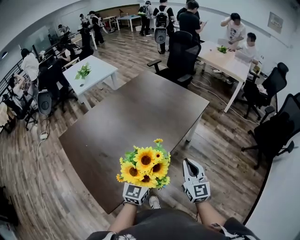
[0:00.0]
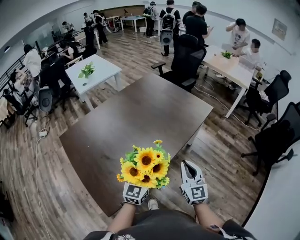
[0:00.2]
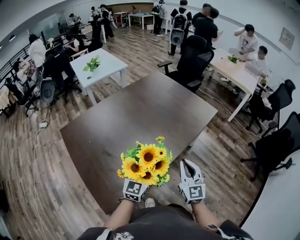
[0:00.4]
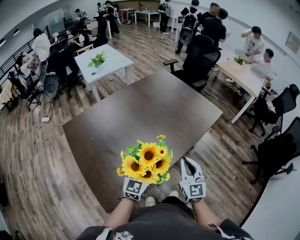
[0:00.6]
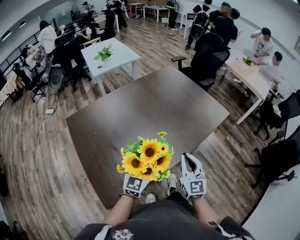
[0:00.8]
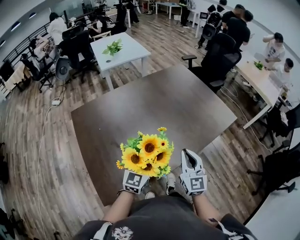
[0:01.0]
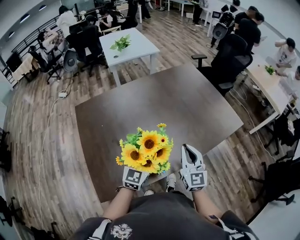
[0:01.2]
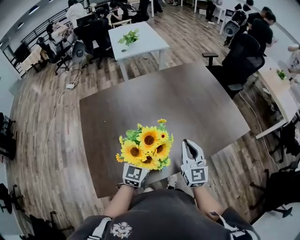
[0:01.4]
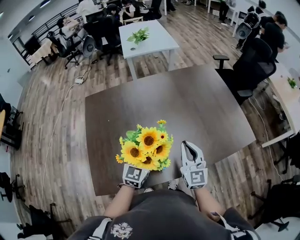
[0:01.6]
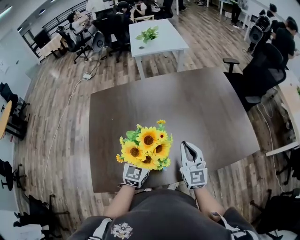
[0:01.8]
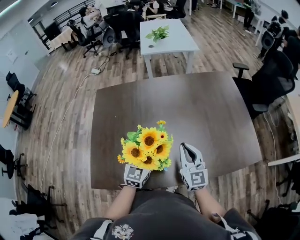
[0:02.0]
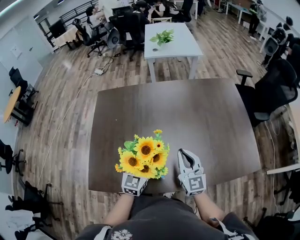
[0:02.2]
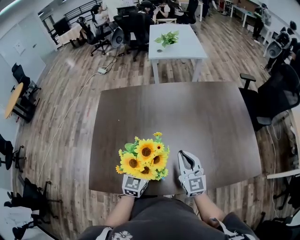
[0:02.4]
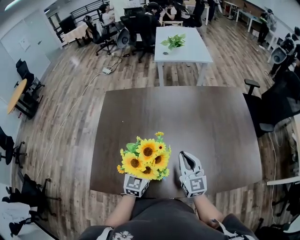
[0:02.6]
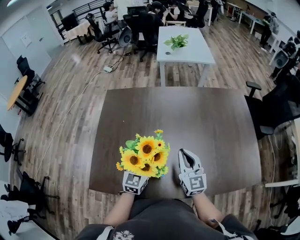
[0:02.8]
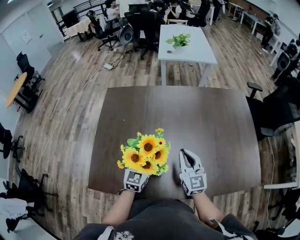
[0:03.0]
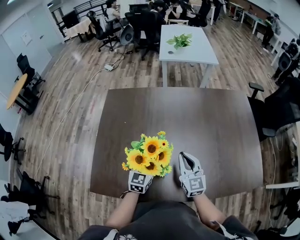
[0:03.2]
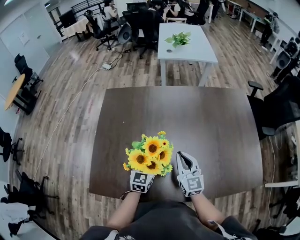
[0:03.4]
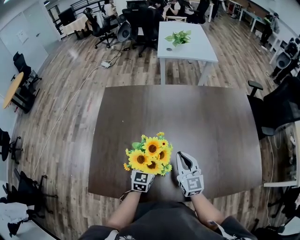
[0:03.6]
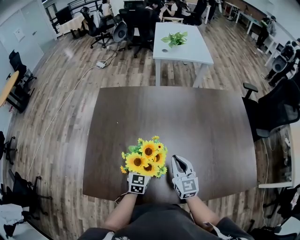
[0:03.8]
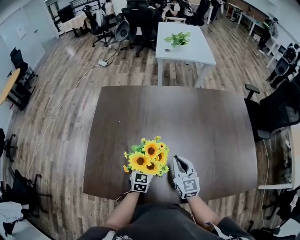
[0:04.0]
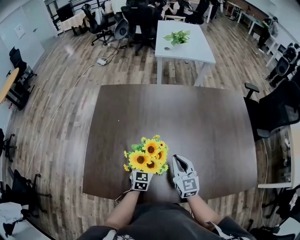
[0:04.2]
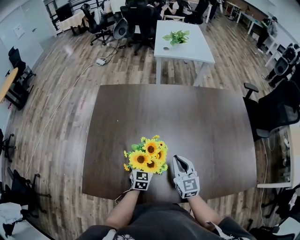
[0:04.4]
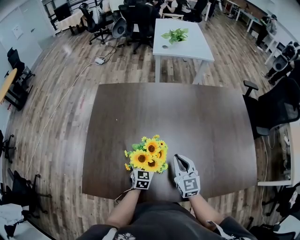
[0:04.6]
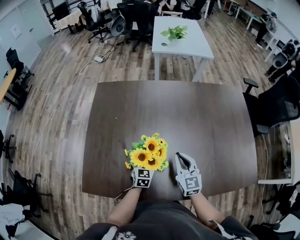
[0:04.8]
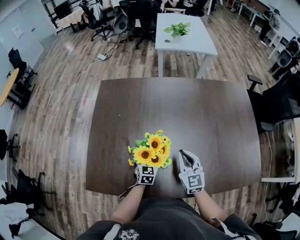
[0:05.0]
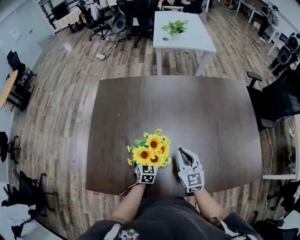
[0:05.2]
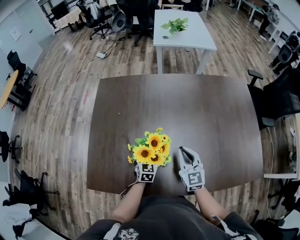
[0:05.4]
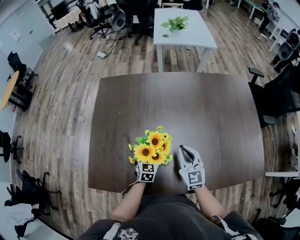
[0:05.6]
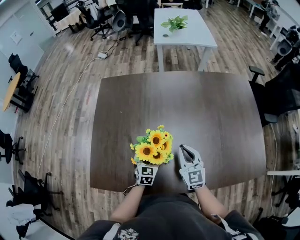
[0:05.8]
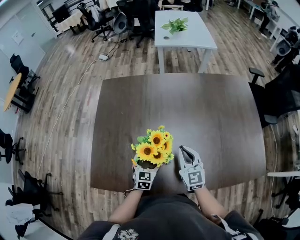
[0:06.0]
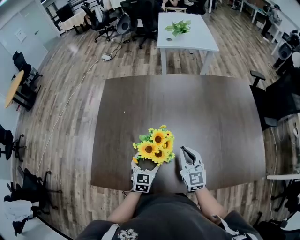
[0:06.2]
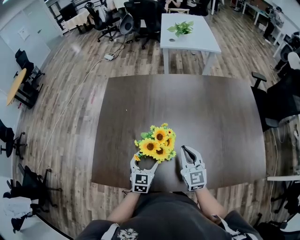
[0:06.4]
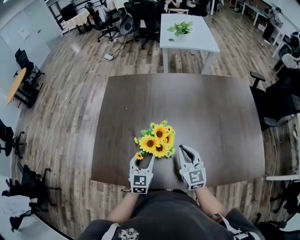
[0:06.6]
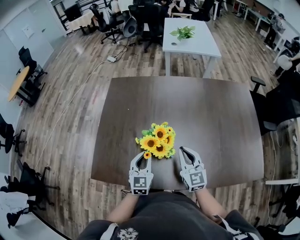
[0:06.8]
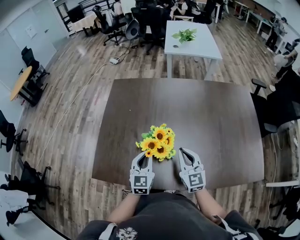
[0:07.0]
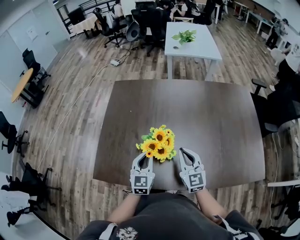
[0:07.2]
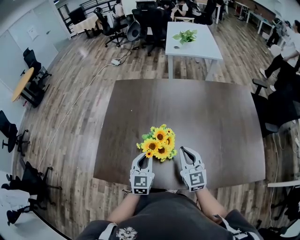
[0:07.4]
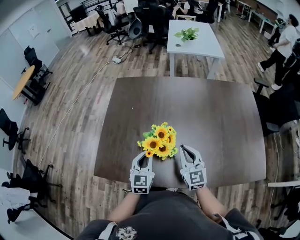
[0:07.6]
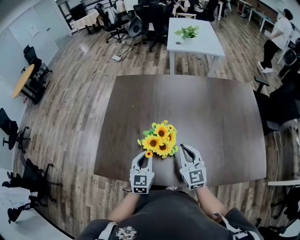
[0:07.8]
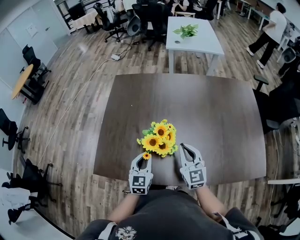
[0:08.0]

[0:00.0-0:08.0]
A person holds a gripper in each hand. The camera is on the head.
0:00.0 to 0:01.6: The right gripper changes place by approximately 30 cm, and swivels roughly 30 degrees. Meanwhile the left gripper moves roughly 20 cm, and turns by some 30 degrees.
0:01.6 to 0:03.2: The left gripper goes approximately 15 cm downward, forward and to the left, and changes its angle by approximately 20 degrees, while the right gripper is displaced forward, to the left and downward by some 15 cm, and rotates about 20 degrees.
0:03.2 to 0:04.8: The left gripper shifts some 15 cm downward.
0:04.8 to 0:06.4: The left gripper is displaced upward and backward by approximately 10 cm.
0:06.4 to 0:08.0: The left gripper ends up some 5 cm from where it was, and closes up.

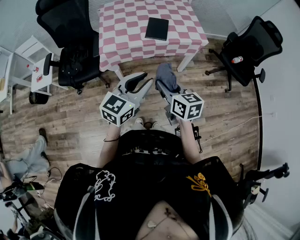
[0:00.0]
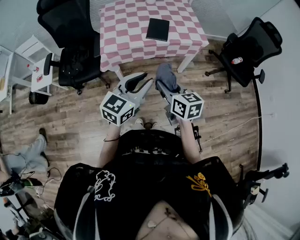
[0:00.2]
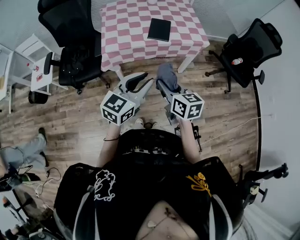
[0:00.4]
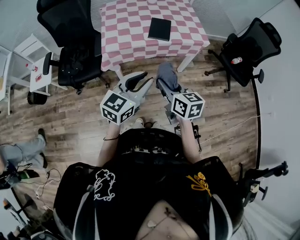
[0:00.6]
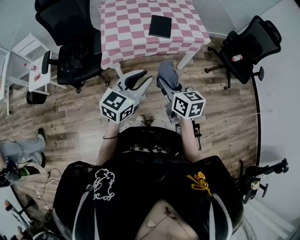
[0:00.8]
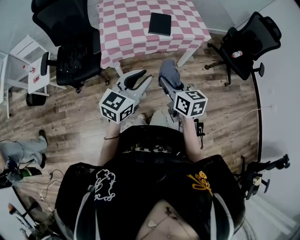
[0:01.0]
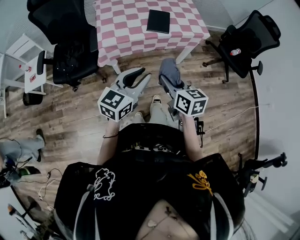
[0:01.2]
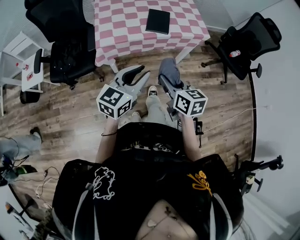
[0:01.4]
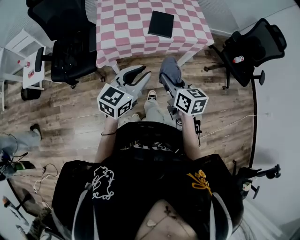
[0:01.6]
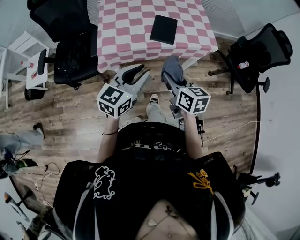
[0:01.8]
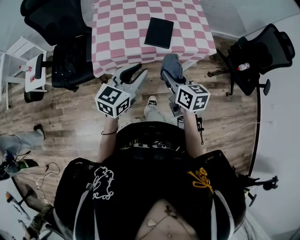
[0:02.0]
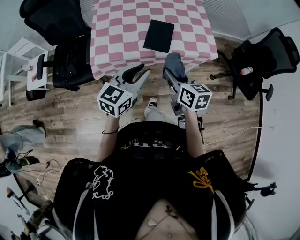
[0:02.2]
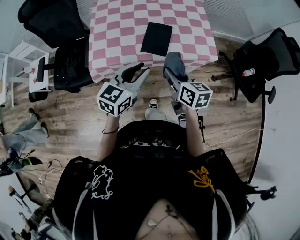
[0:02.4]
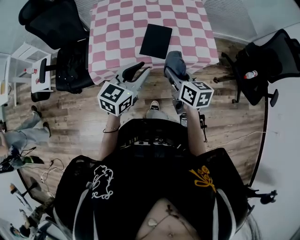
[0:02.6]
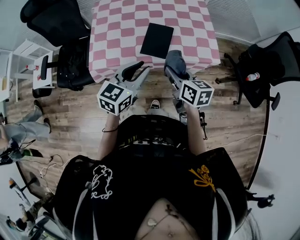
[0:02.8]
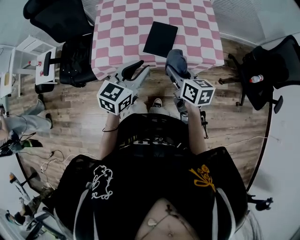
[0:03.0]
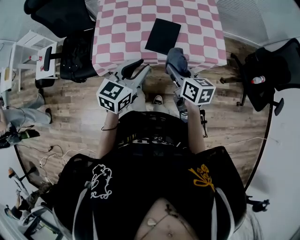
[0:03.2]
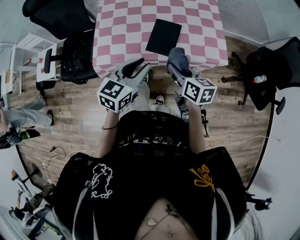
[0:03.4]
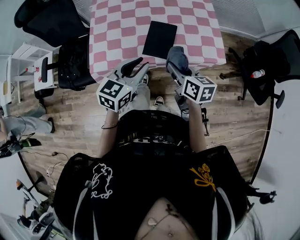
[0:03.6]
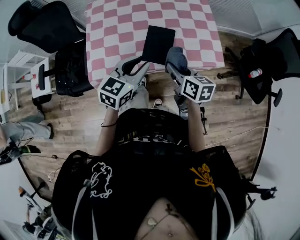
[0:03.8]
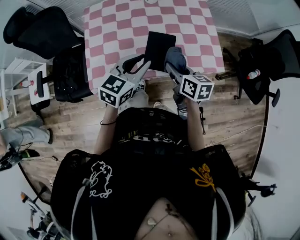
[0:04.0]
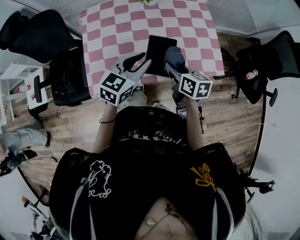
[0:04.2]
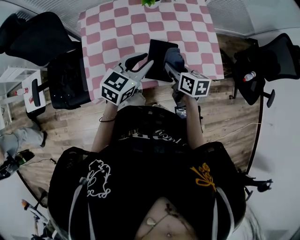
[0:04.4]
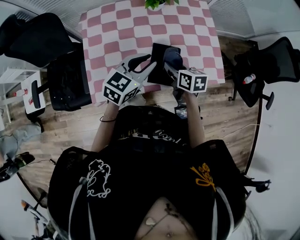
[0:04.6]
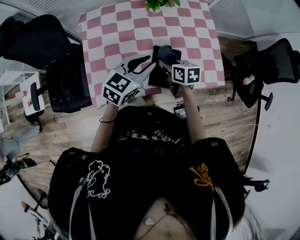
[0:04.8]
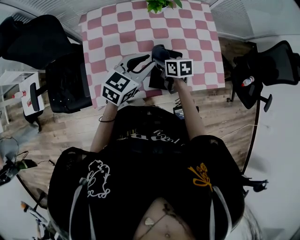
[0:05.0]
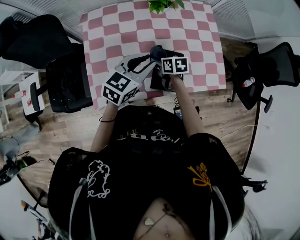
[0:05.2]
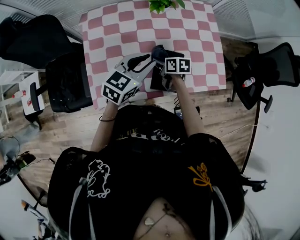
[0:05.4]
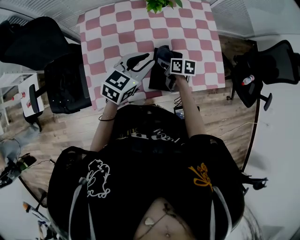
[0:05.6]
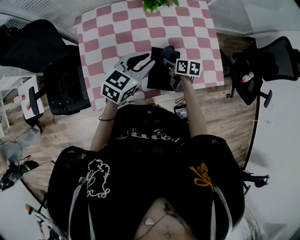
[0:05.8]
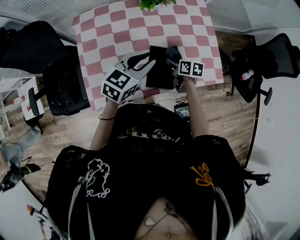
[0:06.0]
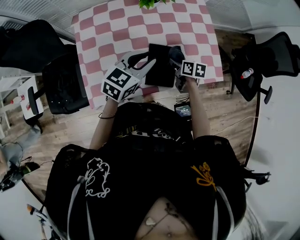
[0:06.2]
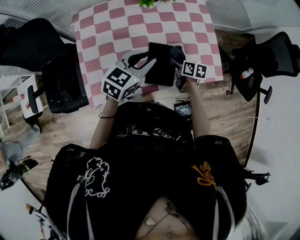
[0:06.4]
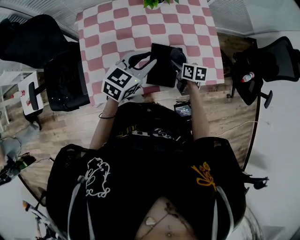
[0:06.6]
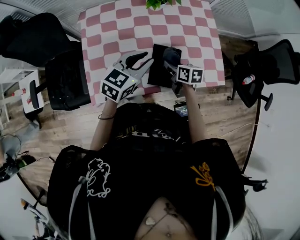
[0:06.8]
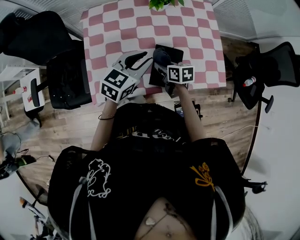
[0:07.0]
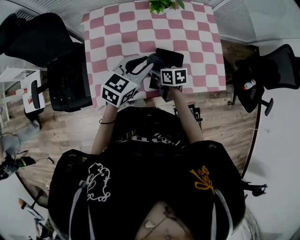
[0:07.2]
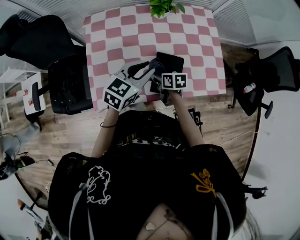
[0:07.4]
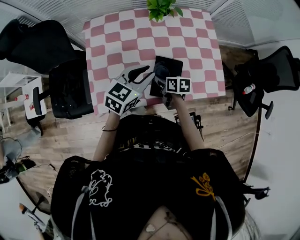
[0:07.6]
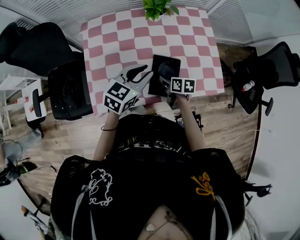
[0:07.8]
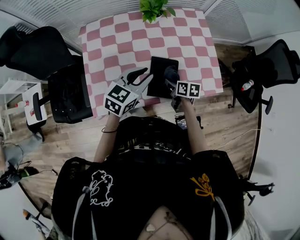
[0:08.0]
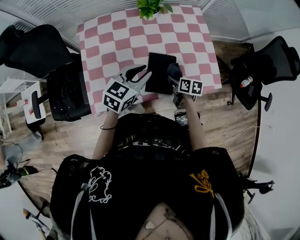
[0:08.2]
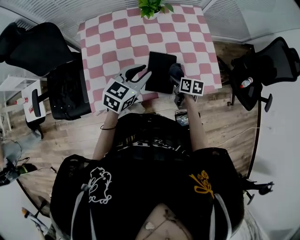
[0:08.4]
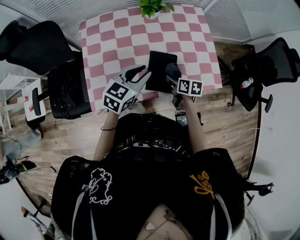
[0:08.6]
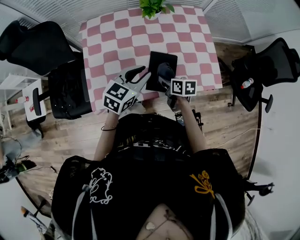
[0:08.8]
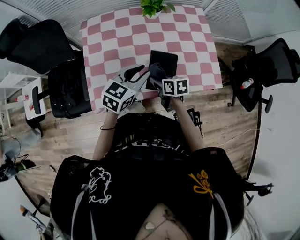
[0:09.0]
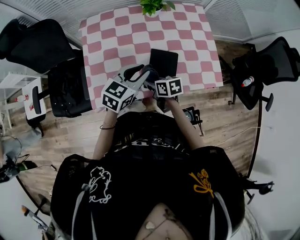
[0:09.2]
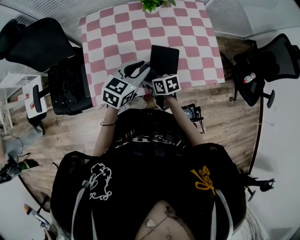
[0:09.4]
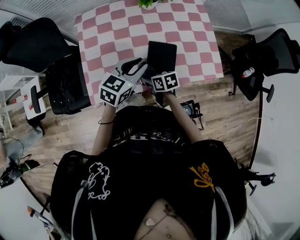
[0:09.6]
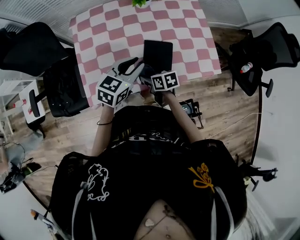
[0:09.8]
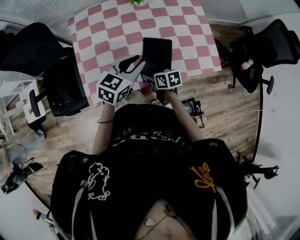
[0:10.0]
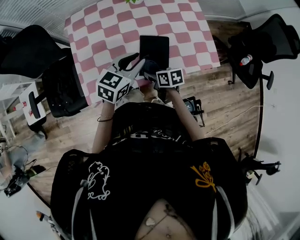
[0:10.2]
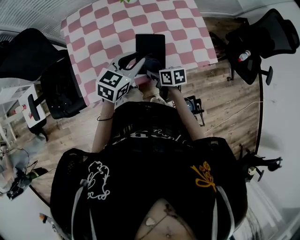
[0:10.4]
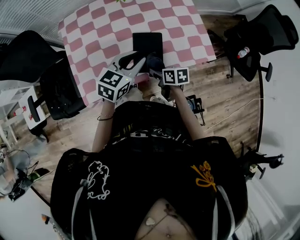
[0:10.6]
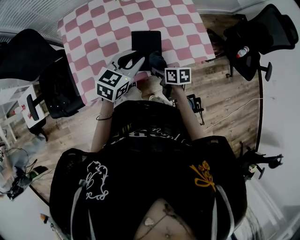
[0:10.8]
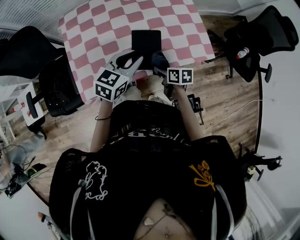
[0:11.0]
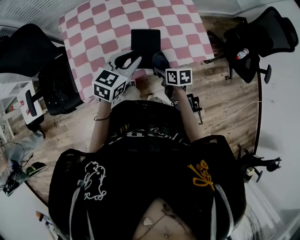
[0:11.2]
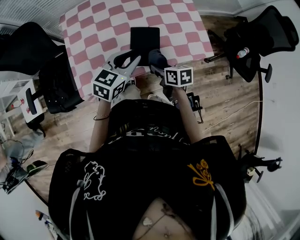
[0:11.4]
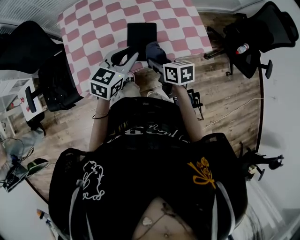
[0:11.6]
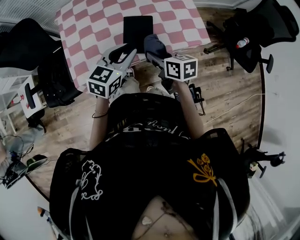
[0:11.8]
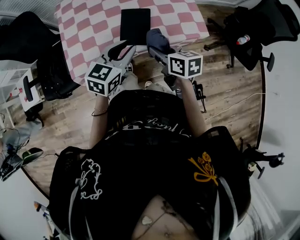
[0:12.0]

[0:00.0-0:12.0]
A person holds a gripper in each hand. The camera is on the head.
0:00.0 to 0:01.6: Both grippers travel together forward, approximately 5 cm.
0:01.6 to 0:03.0: The right gripper goes some 25 cm forward and to the right, while the left gripper moves forward, roughly 20 cm.
0:03.0 to 0:04.4: Both grippers travel together forward, approximately 20 cm.
0:04.4 to 0:06.0: The right gripper goes approximately 15 cm downward and forward, while the left gripper moves forward, some 5 cm.
0:06.0 to 0:07.6: The right gripper moves to the left, some 10 cm.
0:07.6 to 0:09.0: The right gripper reaches some 10 cm to the right, then returns.
0:09.0 to 0:10.4: The right gripper shifts by some 5 cm.
0:10.4 to 0:12.0: The left gripper shifts about 10 cm backward. The right gripper goes about 15 cm upward, to the right and backward.

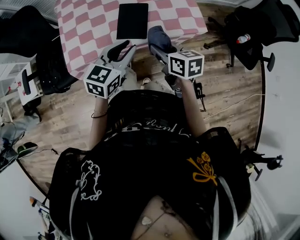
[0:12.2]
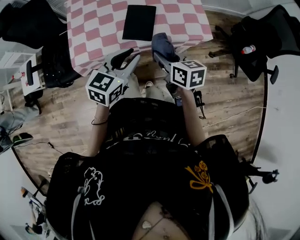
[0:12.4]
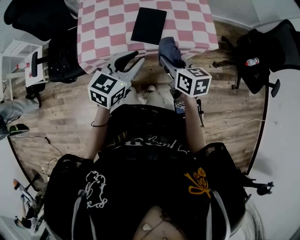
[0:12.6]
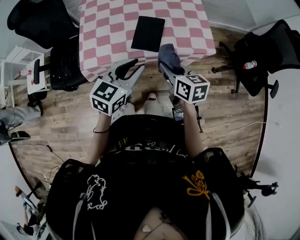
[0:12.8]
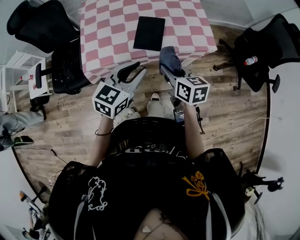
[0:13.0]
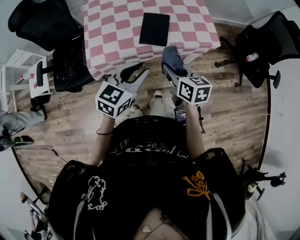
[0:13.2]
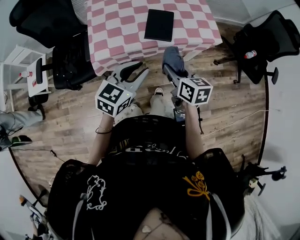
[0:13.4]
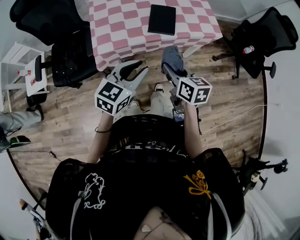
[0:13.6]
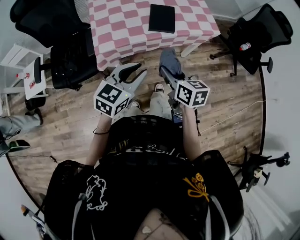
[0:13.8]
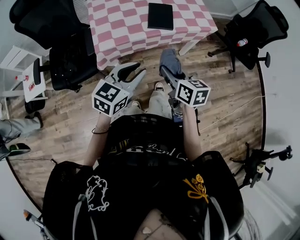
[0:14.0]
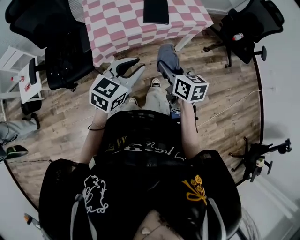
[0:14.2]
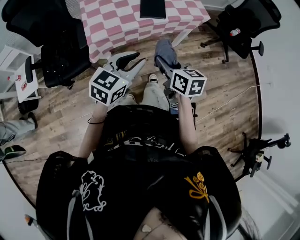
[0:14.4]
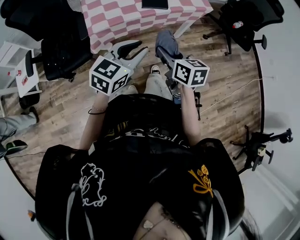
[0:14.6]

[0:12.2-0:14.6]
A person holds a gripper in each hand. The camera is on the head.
0:12.2 to 0:13.4: Both grippers move backward and to the left, roughly 15 cm.
0:13.4 to 0:14.6: The grippers both shift backward by some 10 cm.

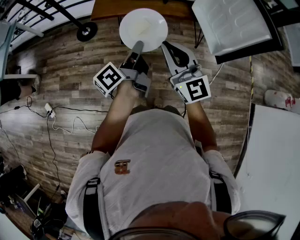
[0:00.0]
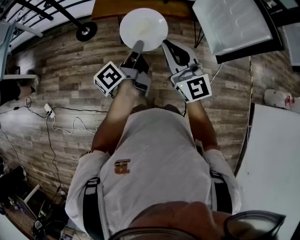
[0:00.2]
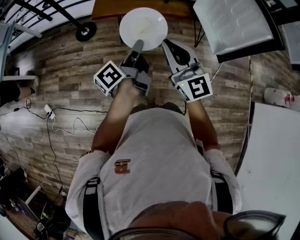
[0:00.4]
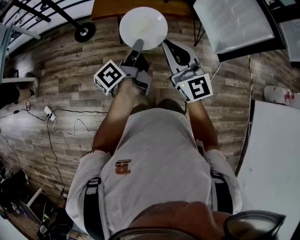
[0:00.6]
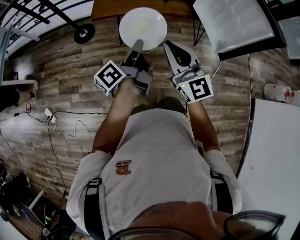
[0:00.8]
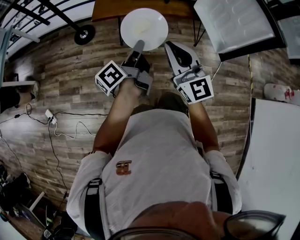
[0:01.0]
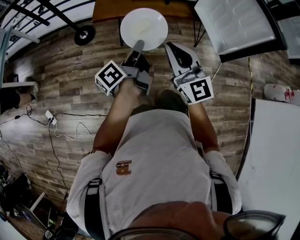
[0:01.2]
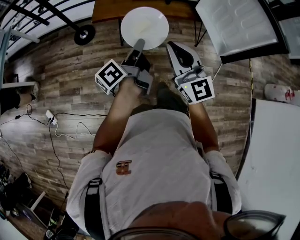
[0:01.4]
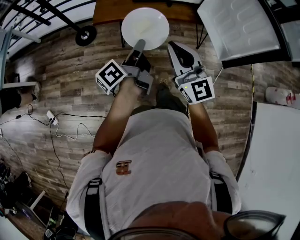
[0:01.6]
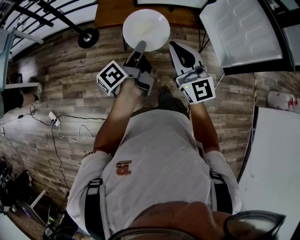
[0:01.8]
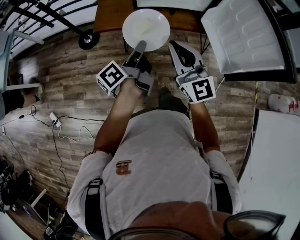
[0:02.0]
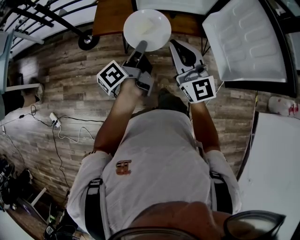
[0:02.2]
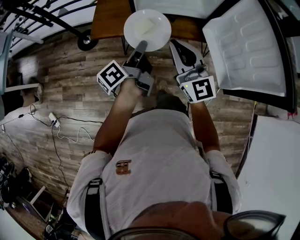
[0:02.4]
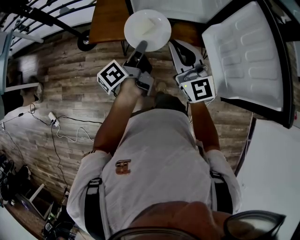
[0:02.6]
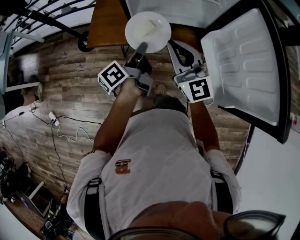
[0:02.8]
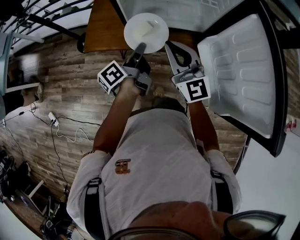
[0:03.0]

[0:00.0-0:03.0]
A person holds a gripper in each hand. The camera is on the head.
0:00.0 to 0:01.6: The left gripper is displaced forward and to the left by some 10 cm, while the right gripper goes roughly 5 cm forward.
0:01.6 to 0:03.0: The two grippers go about 35 cm forward and to the right.
